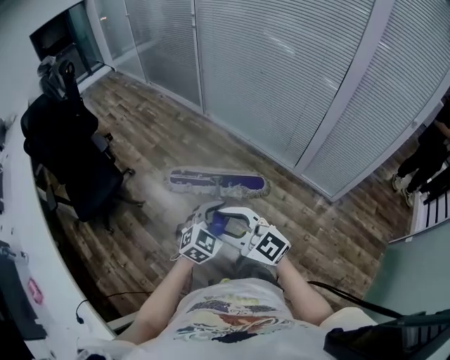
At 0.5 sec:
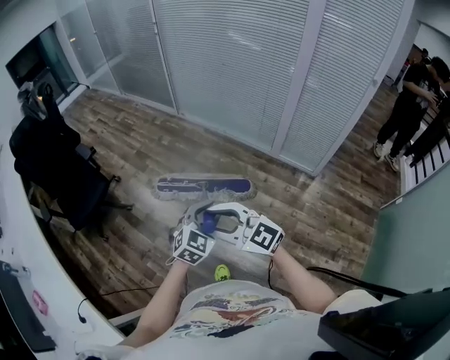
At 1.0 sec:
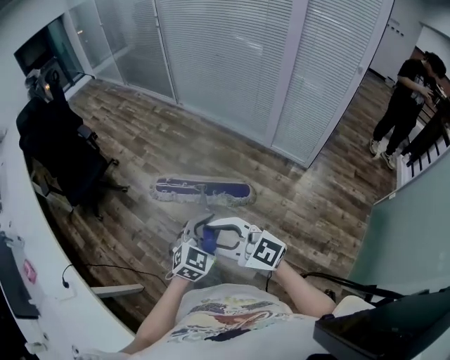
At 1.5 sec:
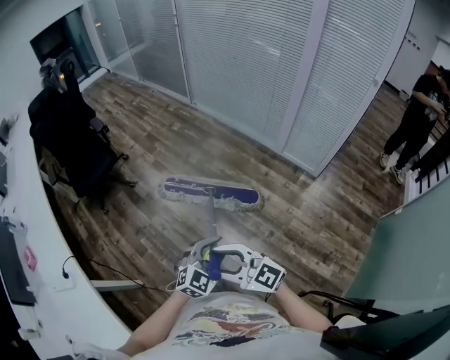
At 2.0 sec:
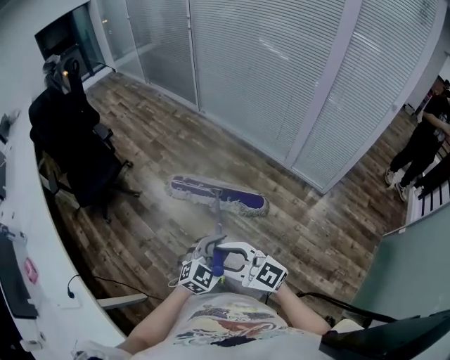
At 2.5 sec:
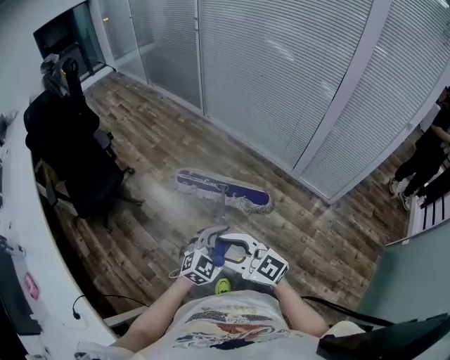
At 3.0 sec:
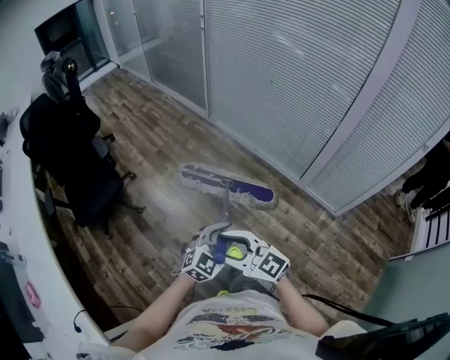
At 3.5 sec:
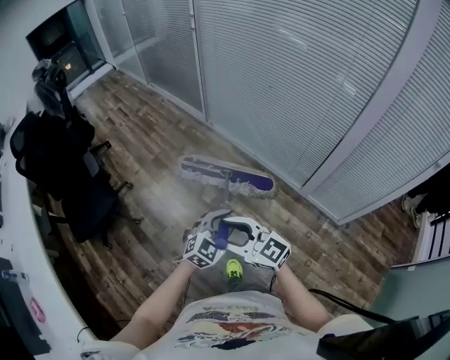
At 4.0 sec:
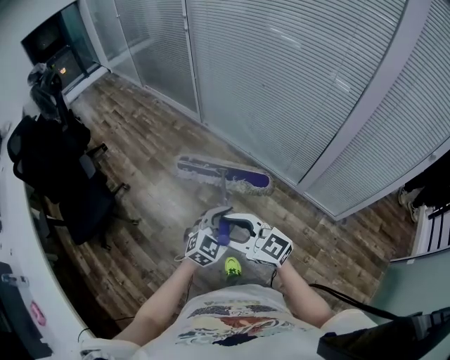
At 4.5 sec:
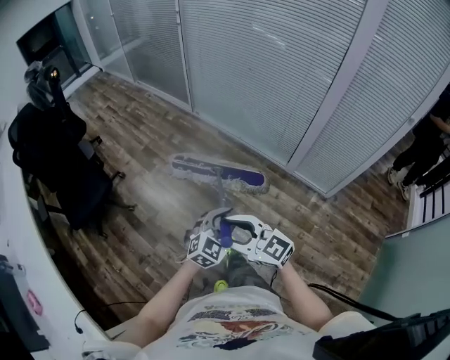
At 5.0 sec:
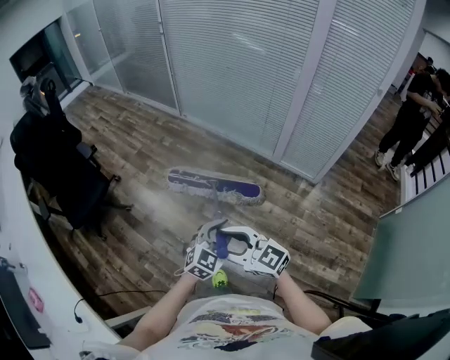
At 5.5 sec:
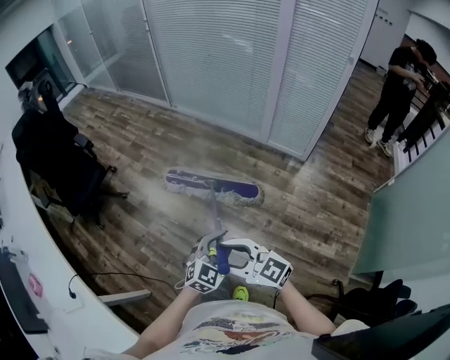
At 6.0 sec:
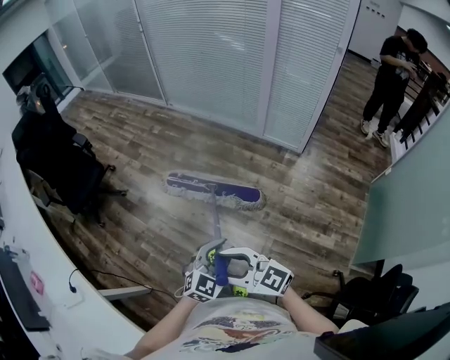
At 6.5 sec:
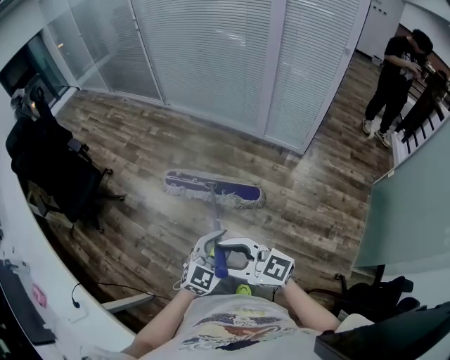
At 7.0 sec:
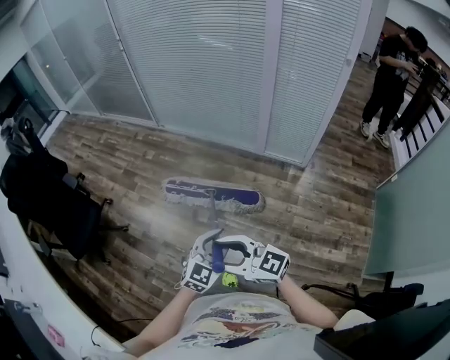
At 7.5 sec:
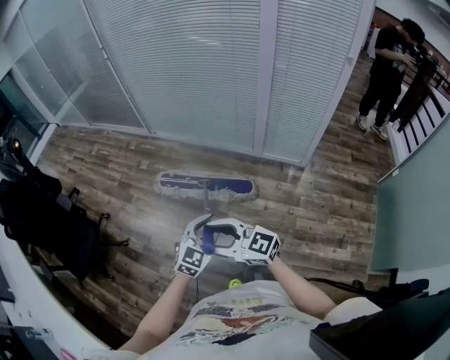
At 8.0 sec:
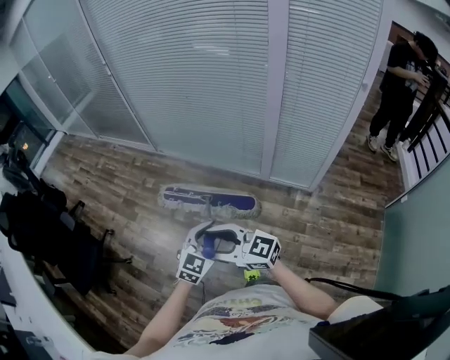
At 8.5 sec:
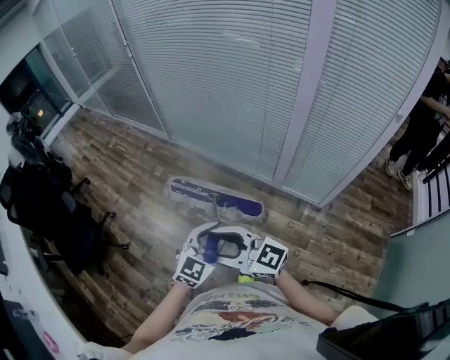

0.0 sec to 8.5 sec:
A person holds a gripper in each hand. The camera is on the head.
0.0 sec to 2.0 sec: The grippers both shift backward by some 25 cm.
2.0 sec to 4.0 sec: Both grippers are carried forward, roughly 50 cm.
4.0 sec to 6.5 sec: Both grippers are carried backward, approximately 60 cm.
6.5 sec to 8.5 sec: Both grippers are carried forward, about 60 cm.

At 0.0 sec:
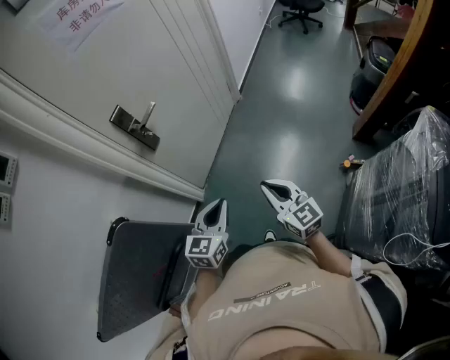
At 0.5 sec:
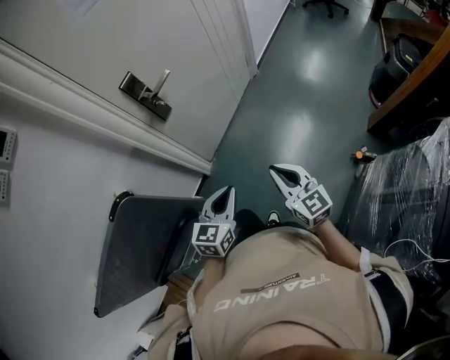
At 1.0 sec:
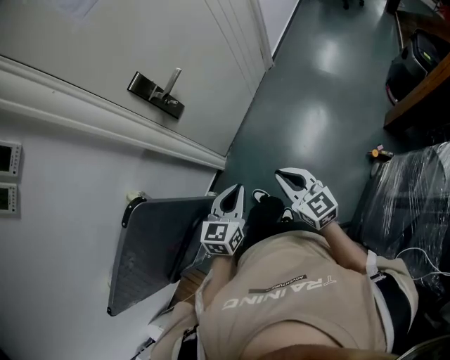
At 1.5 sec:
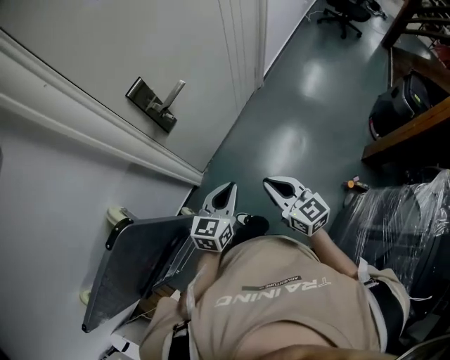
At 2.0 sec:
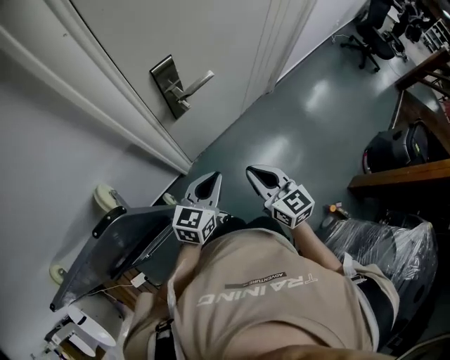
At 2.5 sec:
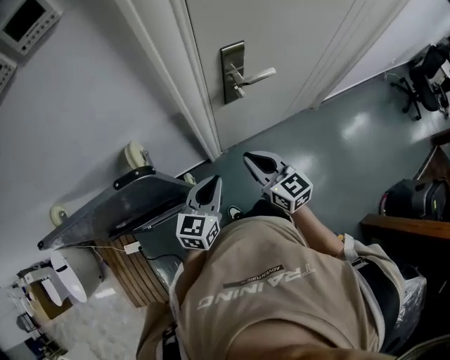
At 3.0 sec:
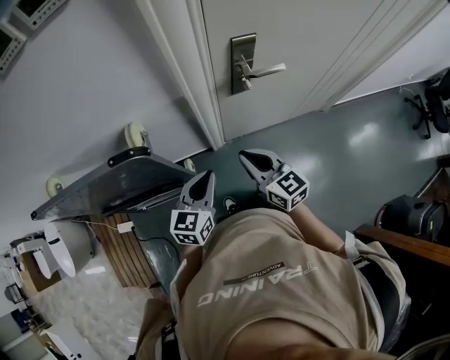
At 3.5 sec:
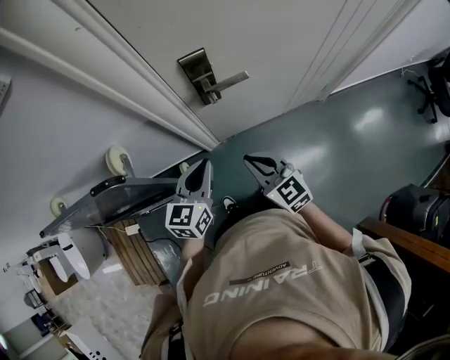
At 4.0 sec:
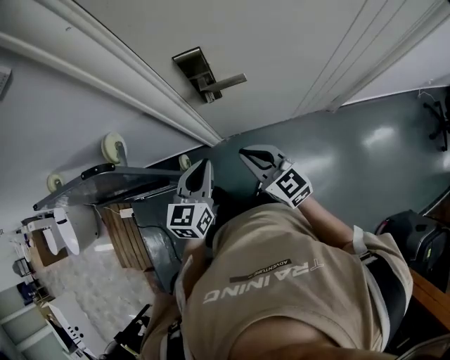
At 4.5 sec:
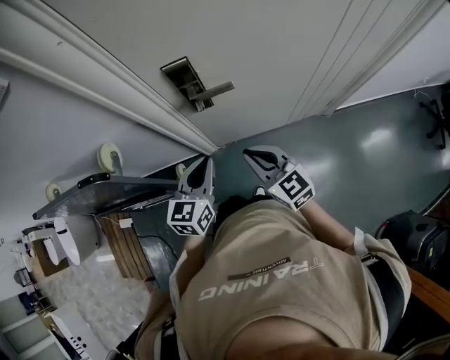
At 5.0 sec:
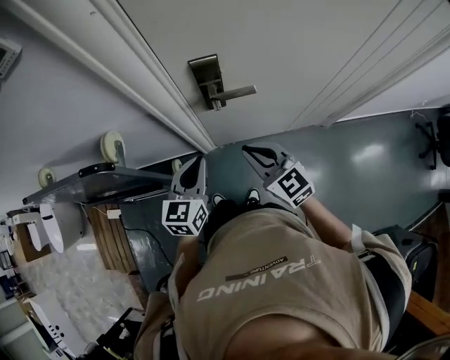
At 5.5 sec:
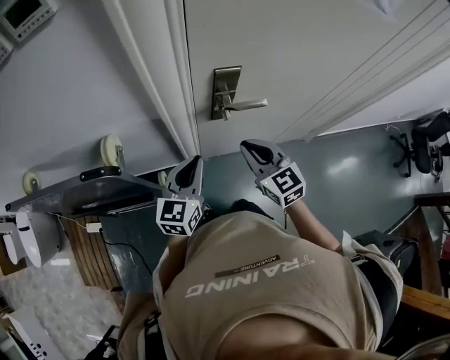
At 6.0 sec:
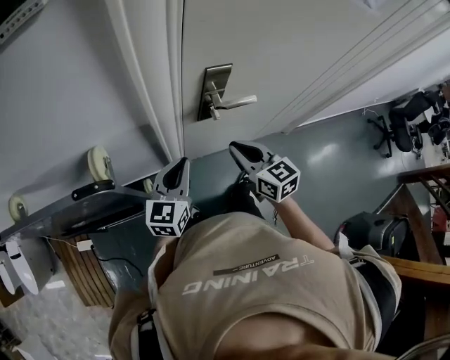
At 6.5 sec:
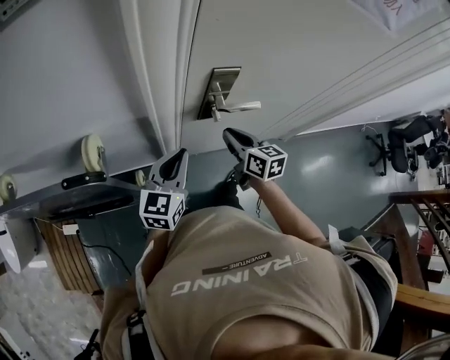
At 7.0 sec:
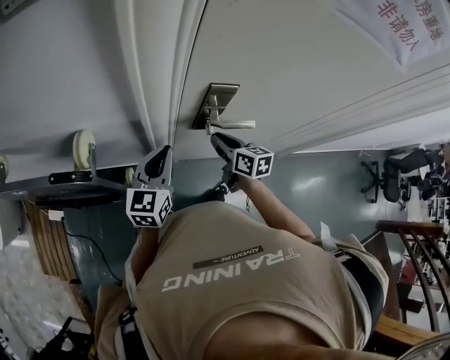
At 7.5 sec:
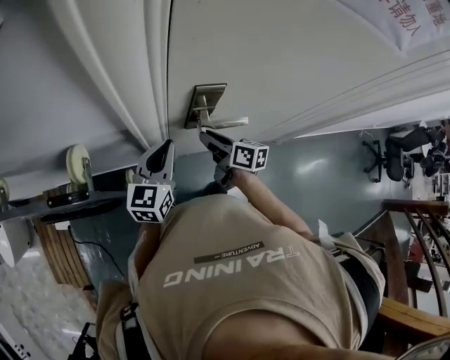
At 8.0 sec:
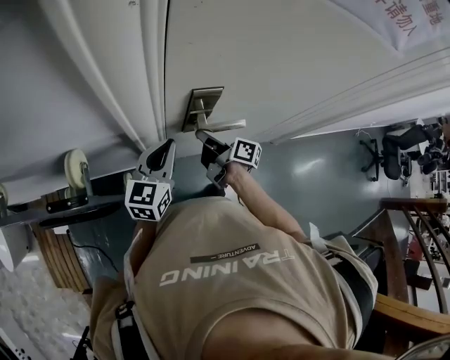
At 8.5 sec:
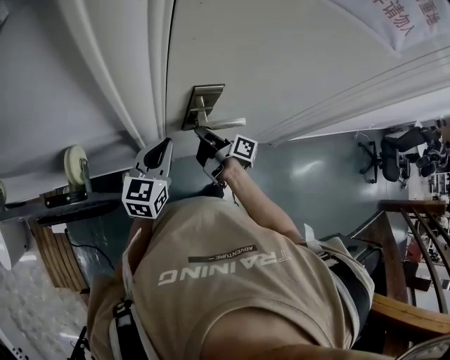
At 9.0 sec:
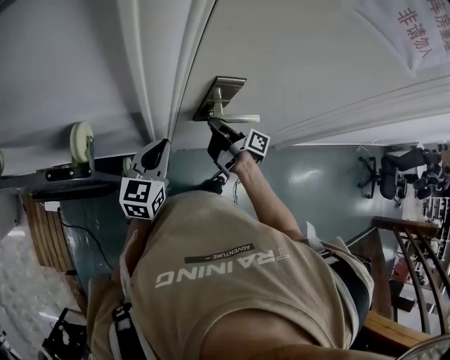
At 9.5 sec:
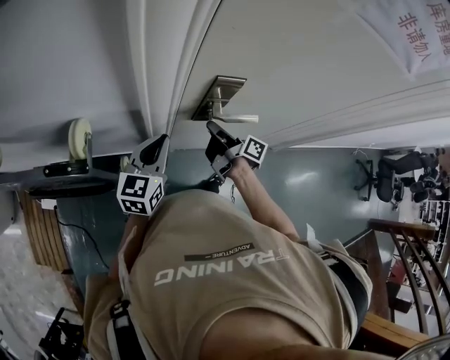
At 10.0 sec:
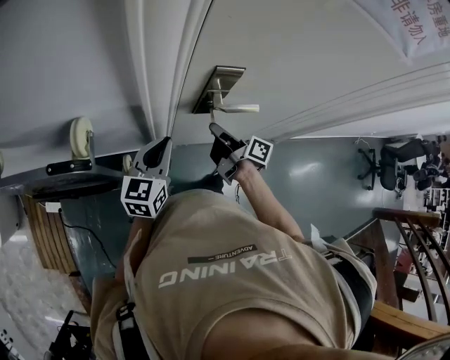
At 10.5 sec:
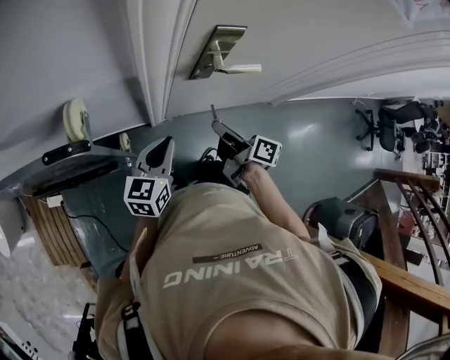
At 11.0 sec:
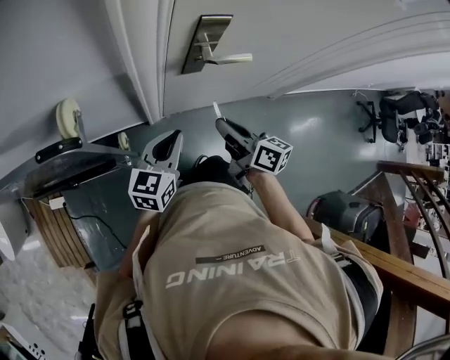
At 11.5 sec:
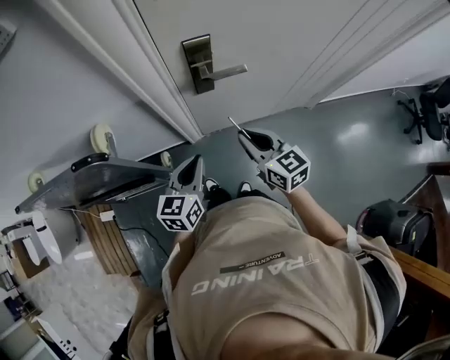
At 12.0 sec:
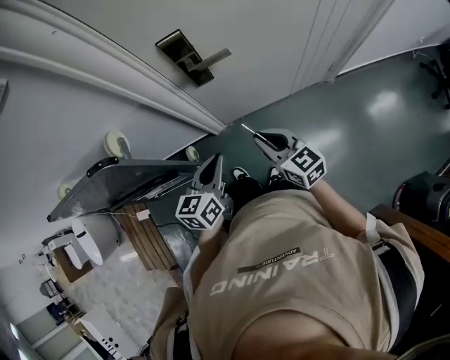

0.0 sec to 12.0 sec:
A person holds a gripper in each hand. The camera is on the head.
0.0 sec to 2.0 sec: Both grippers move forward and to the left, roughly 25 cm. The right gripper changes its angle by roughly 20 degrees.
2.0 sec to 4.0 sec: The right gripper changes place by about 10 cm, and turns by approximately 40 degrees; the left gripper turns by roughly 40 degrees.
4.0 sec to 6.0 sec: The left gripper goes about 10 cm to the left and forward. Meanwhile the right gripper goes some 10 cm forward.
6.0 sec to 8.0 sec: The left gripper is displaced forward by roughly 10 cm. The right gripper heads forward and downward, covering about 15 cm, and rotates around the line of its fingers by some 60 degrees, clockwise from behind.
8.0 sec to 10.0 sec: The left gripper moves backward, about 5 cm.
10.0 sec to 12.0 sec: The right gripper heads backward, covering some 20 cm, and twists approximately 60 degrees counterclockwise, seen from behind, while the left gripper goes approximately 20 cm backward and to the right.

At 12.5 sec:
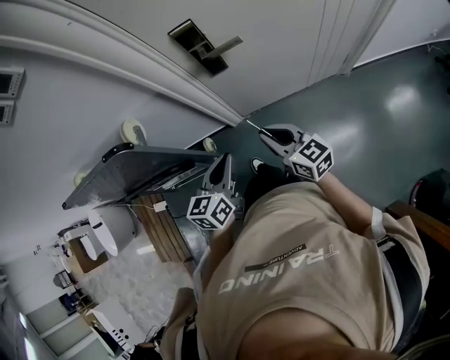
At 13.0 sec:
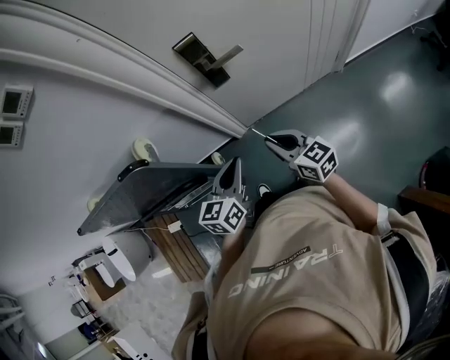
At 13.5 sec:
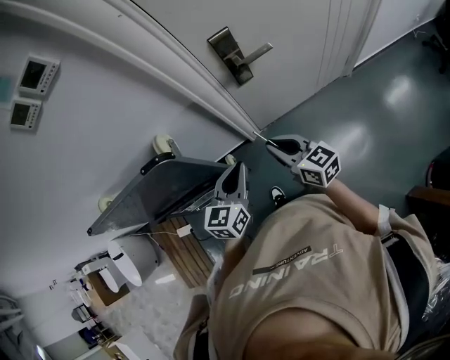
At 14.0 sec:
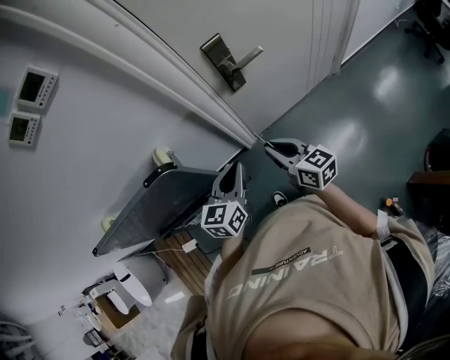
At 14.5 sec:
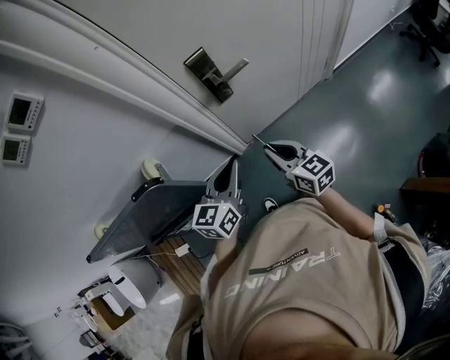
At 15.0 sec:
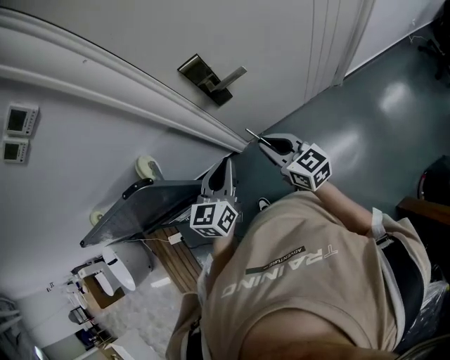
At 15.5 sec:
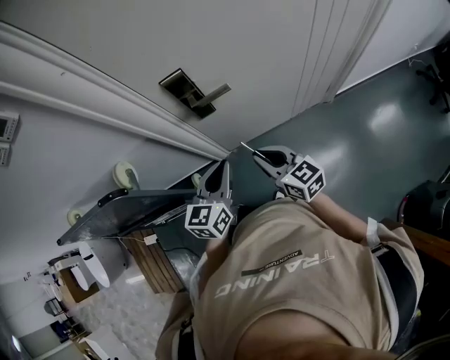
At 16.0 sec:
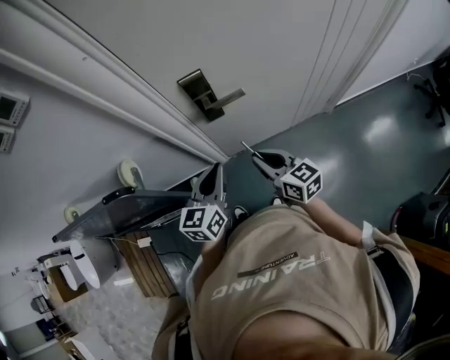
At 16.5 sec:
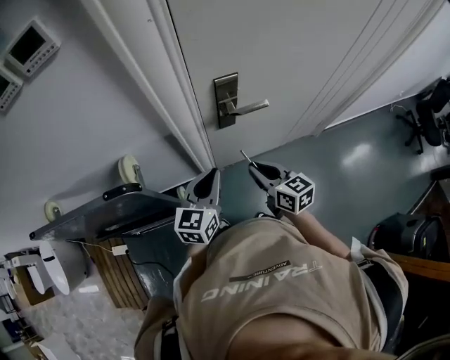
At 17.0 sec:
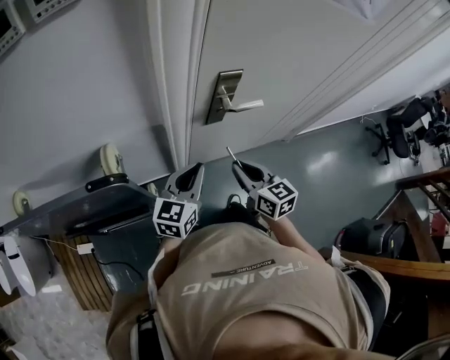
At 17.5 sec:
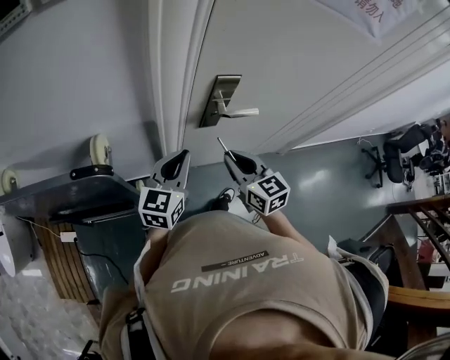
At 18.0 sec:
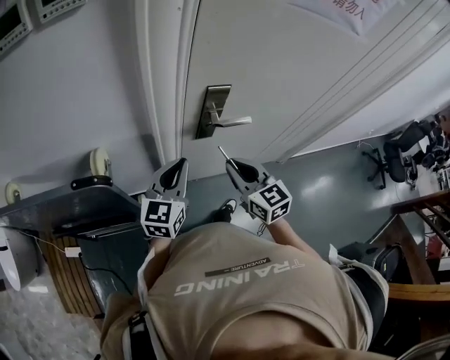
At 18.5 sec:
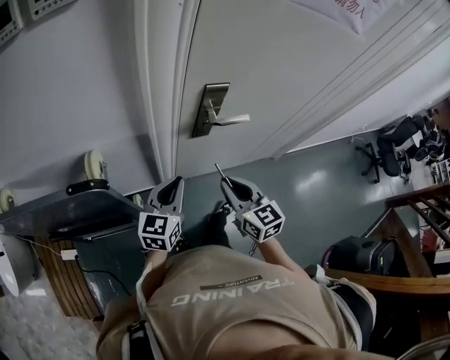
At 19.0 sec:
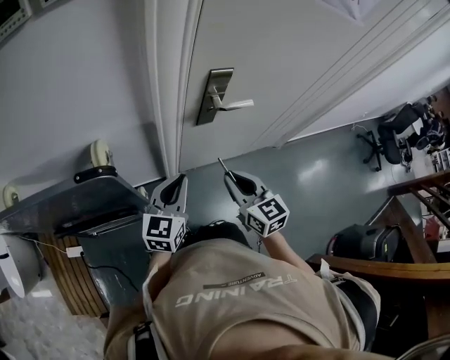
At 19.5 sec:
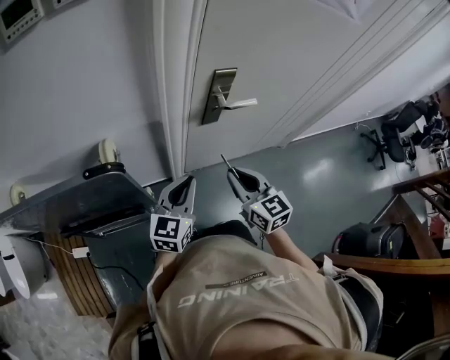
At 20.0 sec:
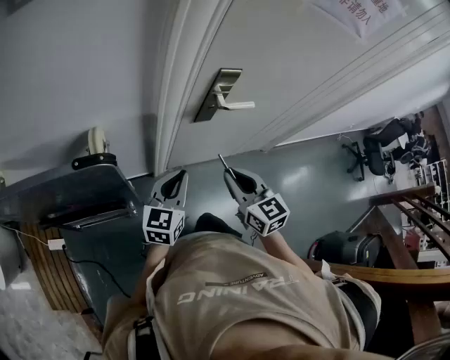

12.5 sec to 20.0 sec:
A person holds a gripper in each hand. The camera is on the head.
12.5 sec to 14.5 sec: The left gripper moves upward and to the left, roughly 10 cm, and swivels roughly 20 degrees. The right gripper shifts approximately 5 cm to the left.
14.5 sec to 16.5 sec: The two grippers go approximately 10 cm forward. The left gripper goes to the right and returns, some 10 cm each way, while the right gripper goes to the right and returns, some 10 cm each way.
16.5 sec to 18.0 sec: The right gripper is displaced upward by about 5 cm, and turns by about 20 degrees.
18.0 sec to 20.0 sec: The right gripper is displaced backward by about 5 cm. The left gripper shifts roughly 10 cm backward and downward.
